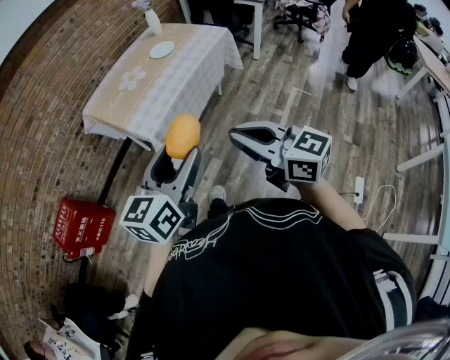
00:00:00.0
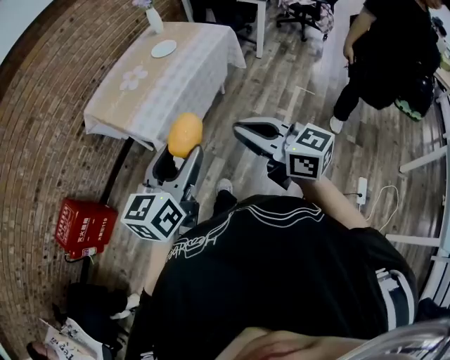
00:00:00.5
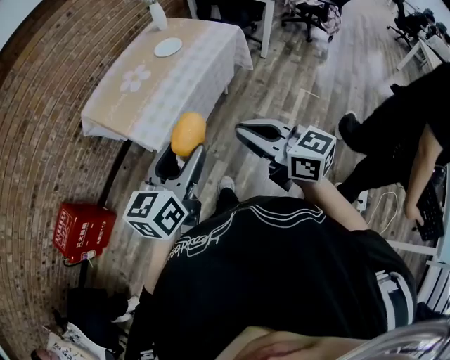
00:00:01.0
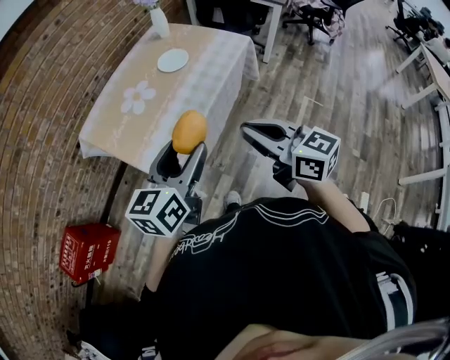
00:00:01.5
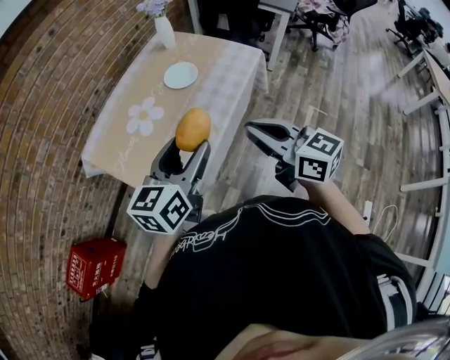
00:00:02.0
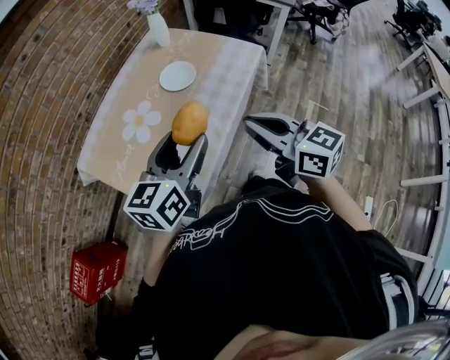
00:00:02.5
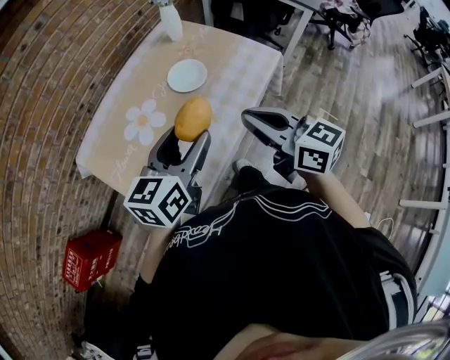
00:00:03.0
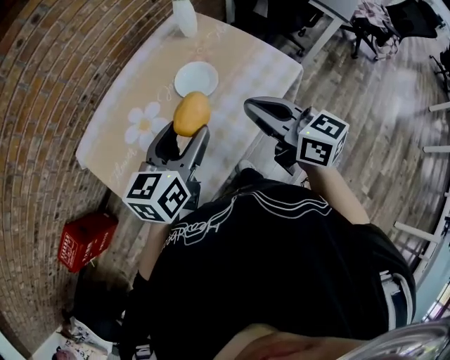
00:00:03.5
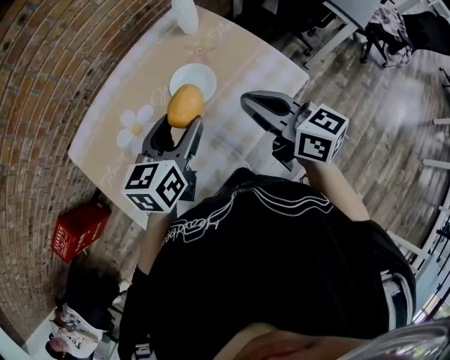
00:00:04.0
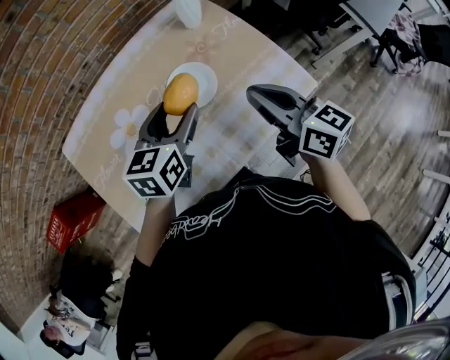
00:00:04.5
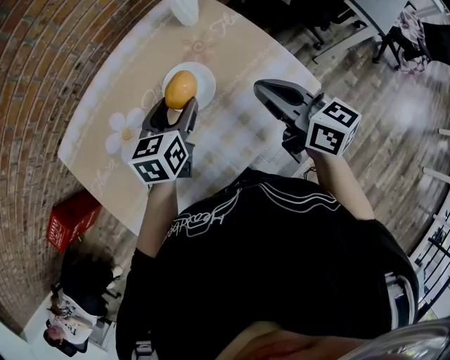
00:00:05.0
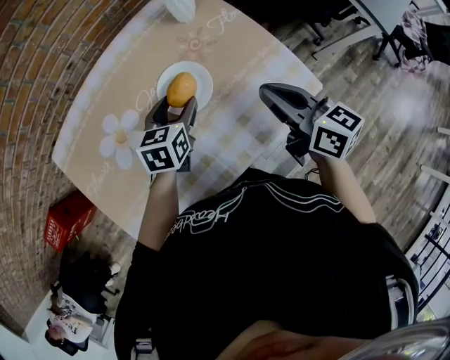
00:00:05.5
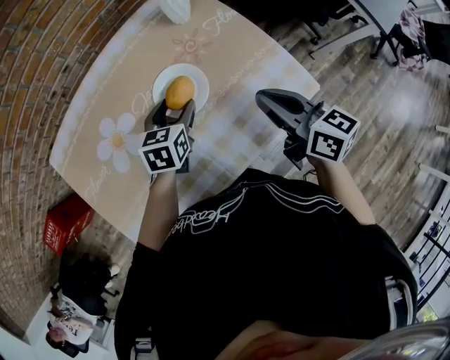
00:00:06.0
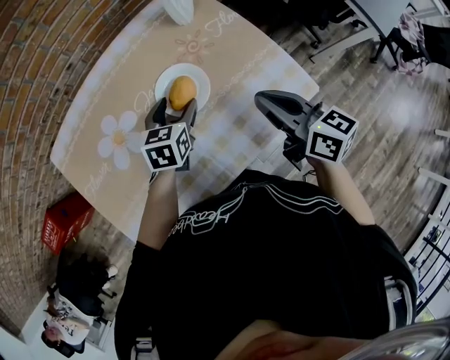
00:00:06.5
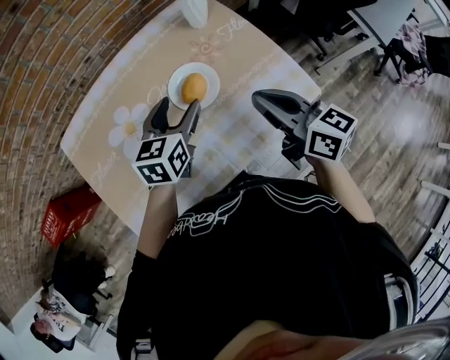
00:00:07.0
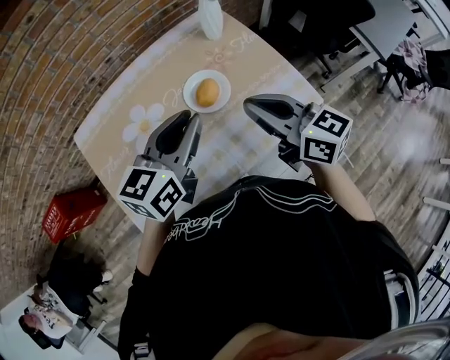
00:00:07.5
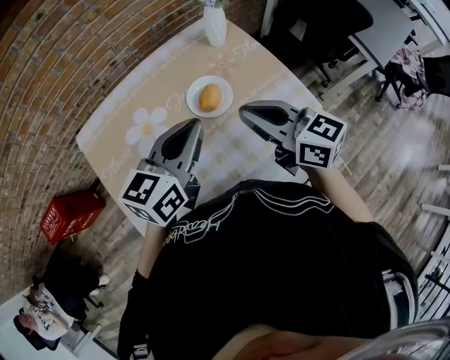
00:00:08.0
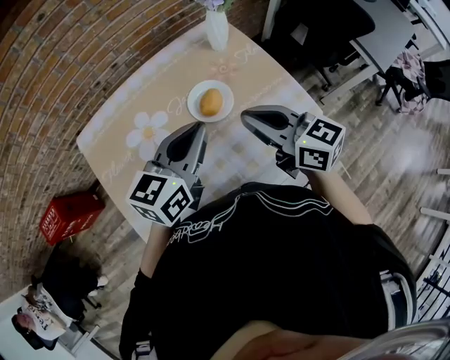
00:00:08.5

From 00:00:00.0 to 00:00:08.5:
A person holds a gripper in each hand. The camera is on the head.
From 00:00:00.0 to 00:00:02.0: The two grippers go approximately 40 cm forward.
From 00:00:02.0 to 00:00:04.0: The two grippers go roughly 30 cm forward. The left gripper rotates some 20 degrees.
From 00:00:04.0 to 00:00:06.5: The left gripper travels downward and forward by about 20 cm. The right gripper heads downward, to the right and forward, covering about 15 cm.
From 00:00:06.5 to 00:00:08.5: The right gripper heads to the left and upward, covering approximately 15 cm, and swivels roughly 20 degrees. The left gripper moves upward and backward, some 25 cm, rotates approximately 30 degrees, and closes its fingers.

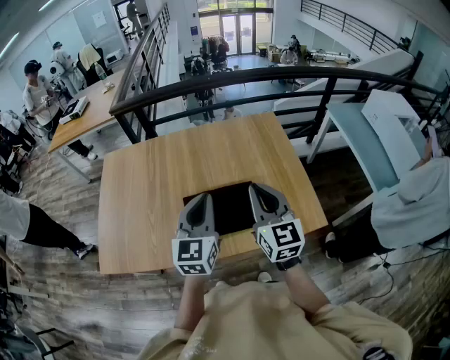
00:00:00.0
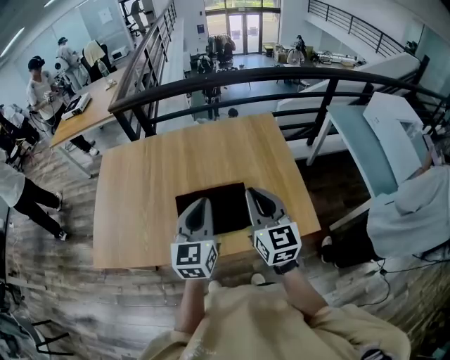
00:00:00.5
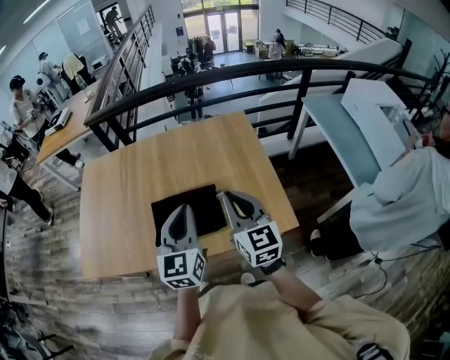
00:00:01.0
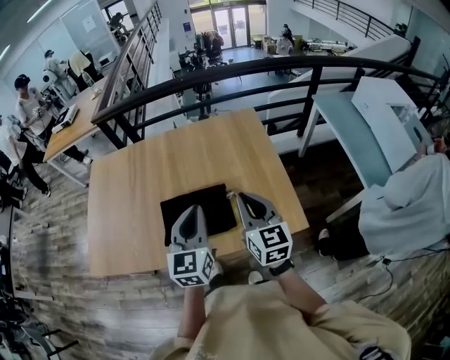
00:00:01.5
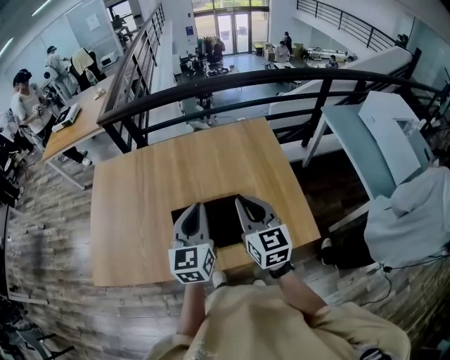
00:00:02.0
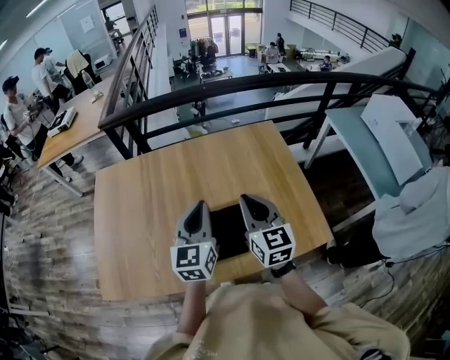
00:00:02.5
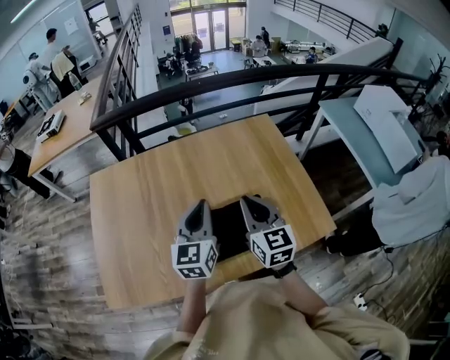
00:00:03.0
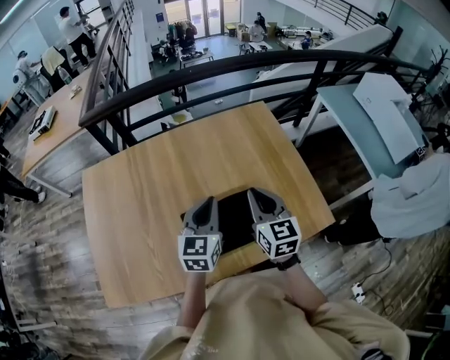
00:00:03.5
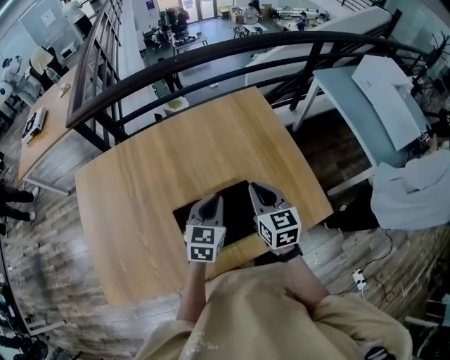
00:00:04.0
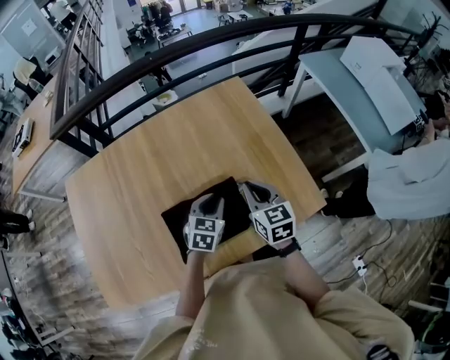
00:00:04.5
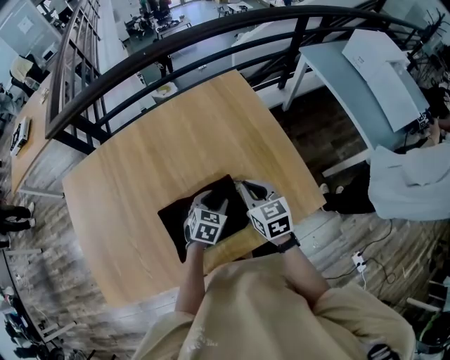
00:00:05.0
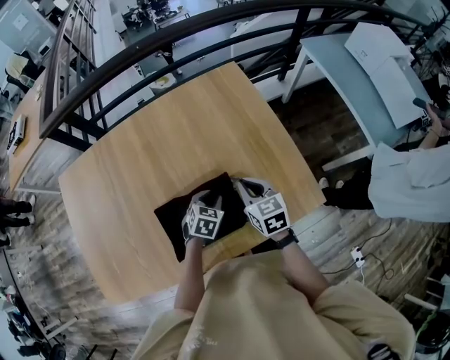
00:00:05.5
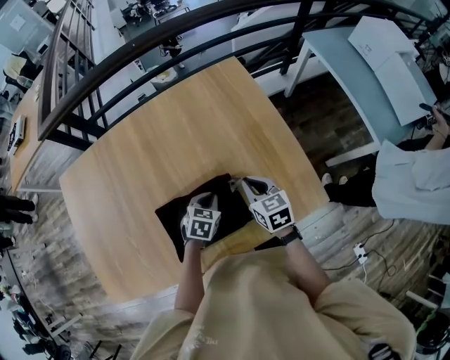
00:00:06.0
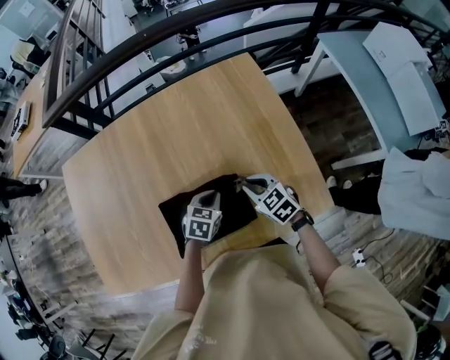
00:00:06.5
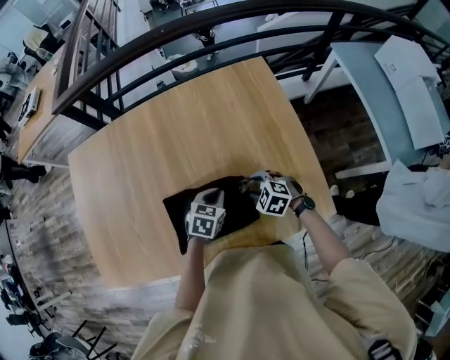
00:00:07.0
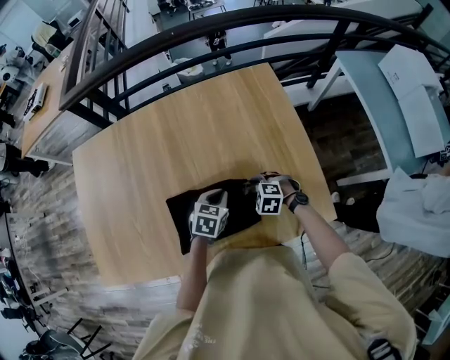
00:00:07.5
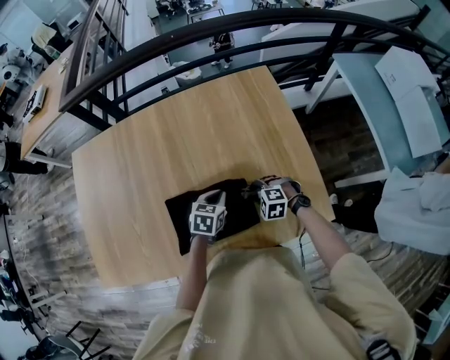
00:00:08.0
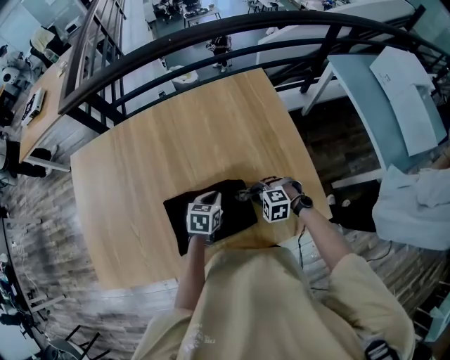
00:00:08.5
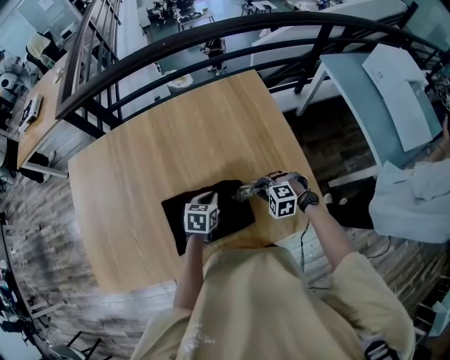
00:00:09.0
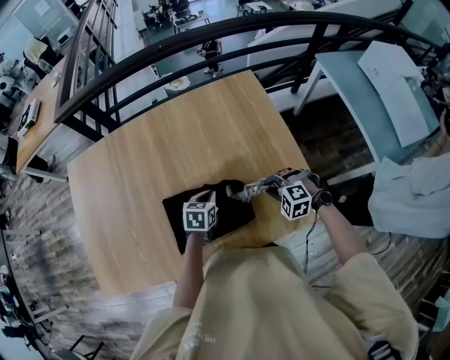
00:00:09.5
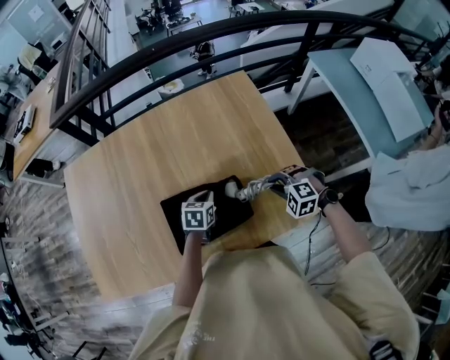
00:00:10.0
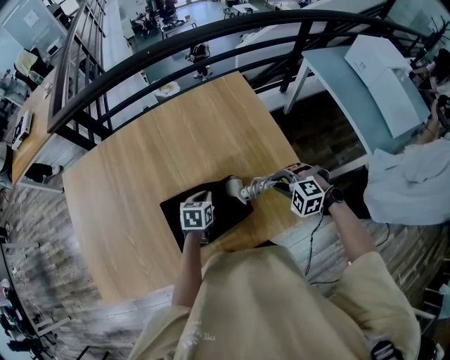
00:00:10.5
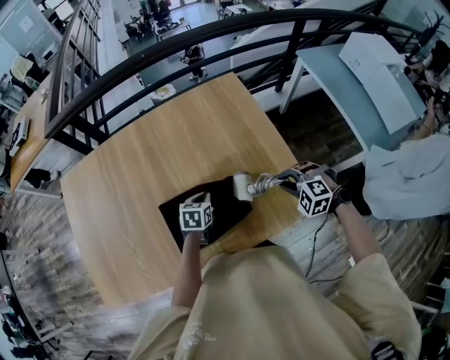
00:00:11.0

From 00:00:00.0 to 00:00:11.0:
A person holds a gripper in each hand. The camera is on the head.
From 00:00:00.0 to 00:00:02.0: The two grippers go about 5 cm forward. The left gripper goes to the right and returns, some 10 cm each way. The right gripper reaches about 10 cm to the right, then returns.
From 00:00:02.0 to 00:00:03.5: The left gripper heads forward, downward and to the left, covering some 10 cm, while the right gripper moves forward and to the left, about 10 cm.
From 00:00:03.5 to 00:00:05.5: The left gripper heads downward and to the right, covering some 25 cm, tilts its fingers roughly 40 degrees downward, and opens; the right gripper is displaced downward and to the right by about 15 cm, and turns by about 20 degrees.
From 00:00:05.5 to 00:00:07.5: The right gripper travels downward by some 15 cm, rotates around the line of its fingers by approximately 60 degrees, counterclockwise from behind, and opens; the left gripper closes its fingers.
From 00:00:07.5 to 00:00:09.0: The right gripper ends up some 5 cm from where it was, and closes.
From 00:00:09.0 to 00:00:11.0: The right gripper is displaced to the right and upward by about 15 cm.

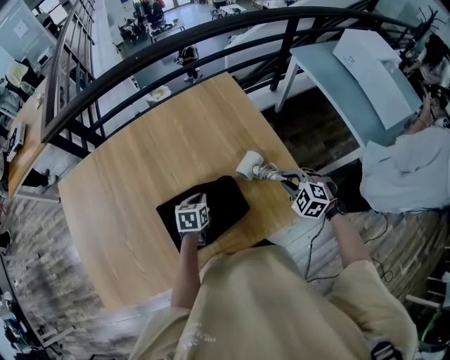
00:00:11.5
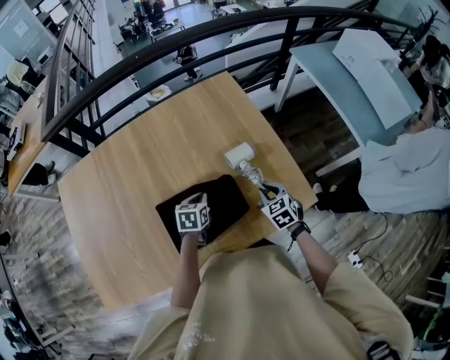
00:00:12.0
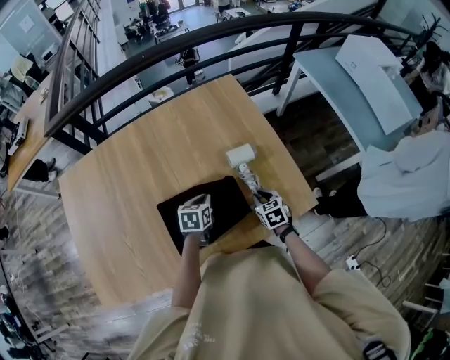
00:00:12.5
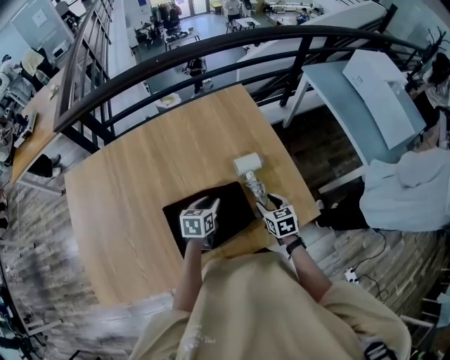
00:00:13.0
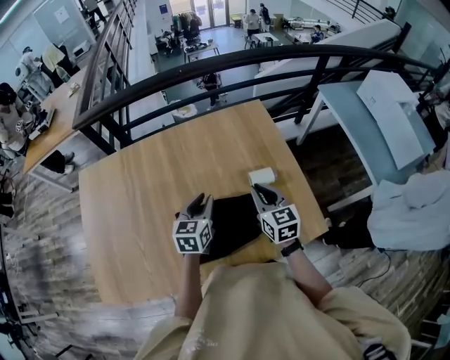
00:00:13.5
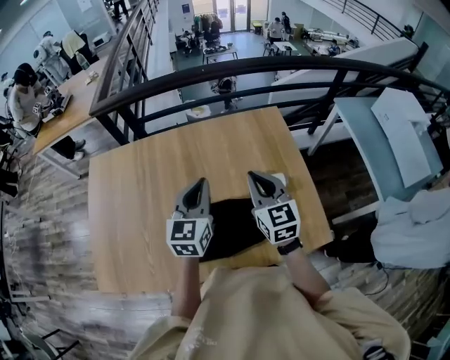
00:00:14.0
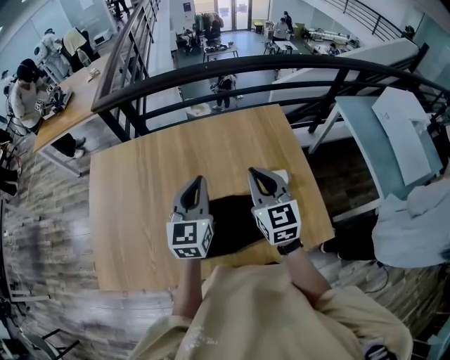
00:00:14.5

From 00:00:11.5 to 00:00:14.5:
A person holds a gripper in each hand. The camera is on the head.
From 00:00:11.5 to 00:00:13.0: The right gripper moves to the left, roughly 10 cm, rolls clockwise, seen from behind, by about 50 degrees, and opens; the left gripper opens.
From 00:00:13.0 to 00:00:14.5: Both grippers travel together upward and to the left, approximately 30 cm. The right gripper angles its fingers upward, by roughly 30 degrees, and closes up, while the left gripper tilts its fingers some 30 degrees upward, and closes.

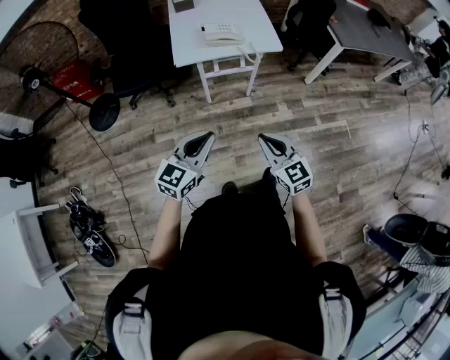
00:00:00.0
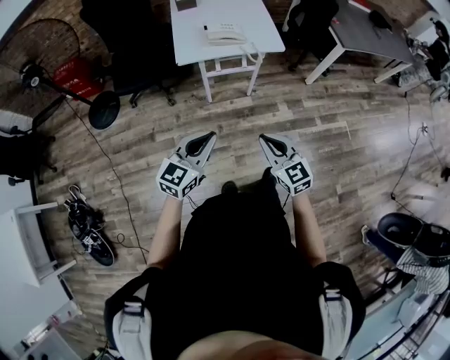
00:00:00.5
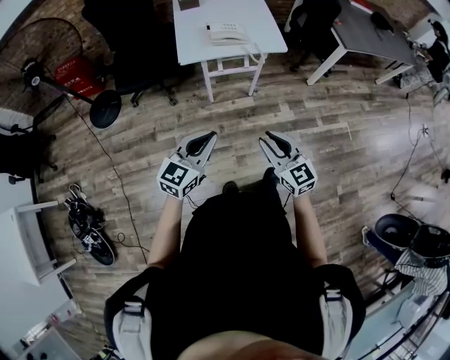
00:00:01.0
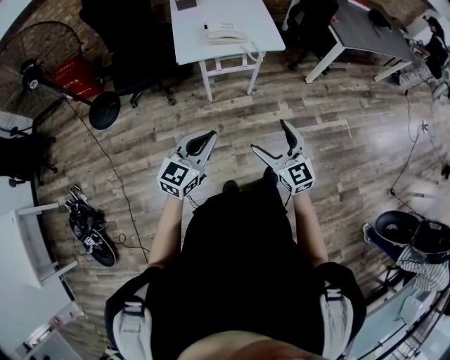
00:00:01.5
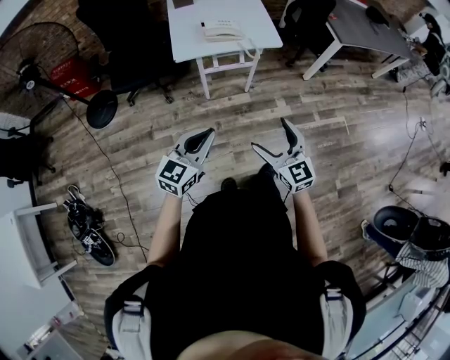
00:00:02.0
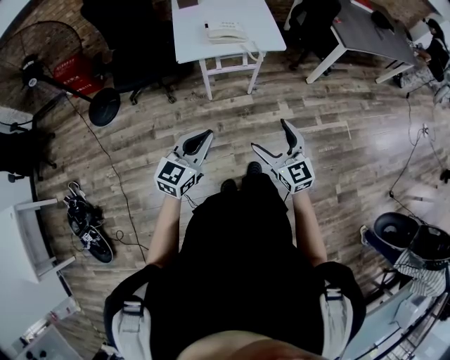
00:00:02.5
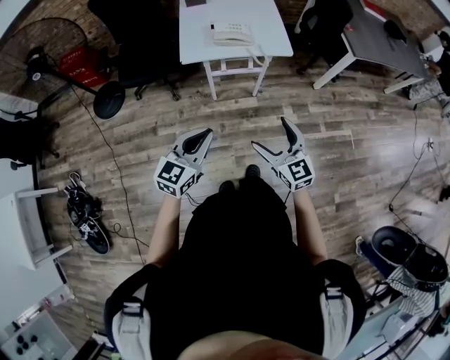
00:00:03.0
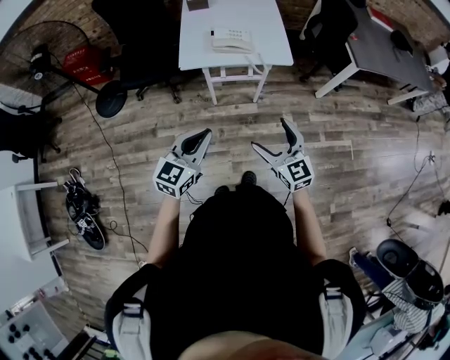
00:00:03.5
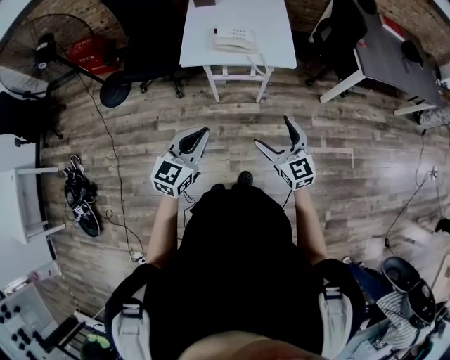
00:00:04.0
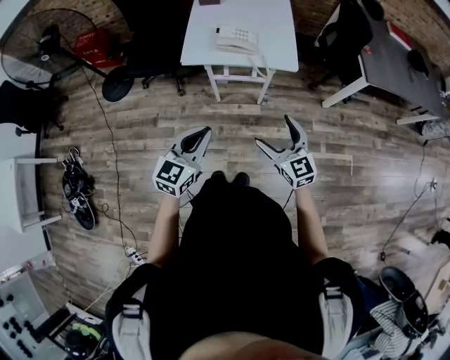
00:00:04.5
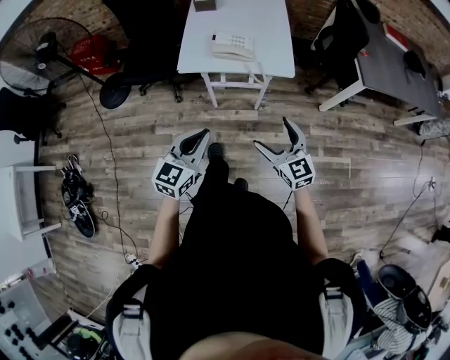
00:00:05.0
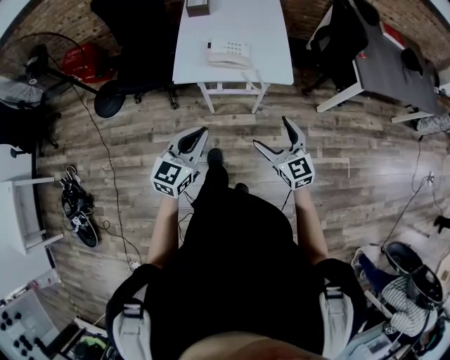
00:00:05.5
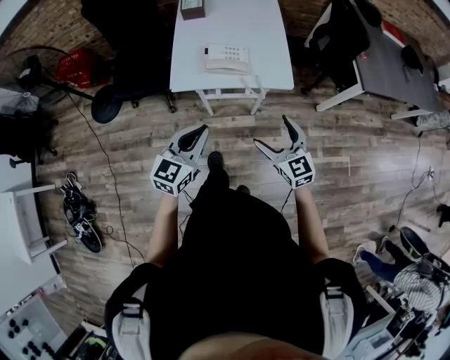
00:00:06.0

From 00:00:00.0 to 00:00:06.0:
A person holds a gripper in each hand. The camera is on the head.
From 00:00:00.0 to 00:00:02.0: The right gripper opens its fingers.
From 00:00:02.0 to 00:00:04.0: Both grippers travel together forward and to the right, approximately 15 cm.
From 00:00:04.0 to 00:00:06.0: Both grippers move forward, approximately 15 cm.
